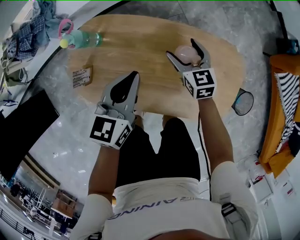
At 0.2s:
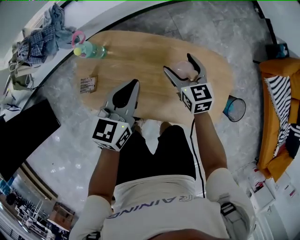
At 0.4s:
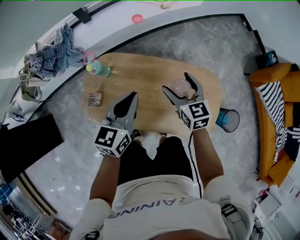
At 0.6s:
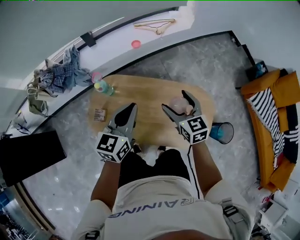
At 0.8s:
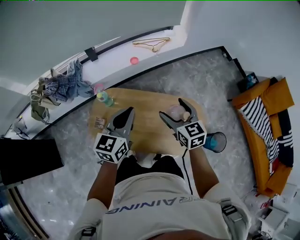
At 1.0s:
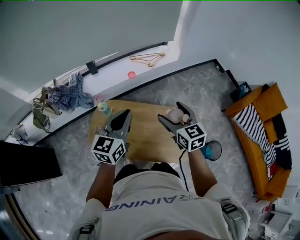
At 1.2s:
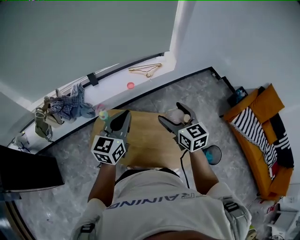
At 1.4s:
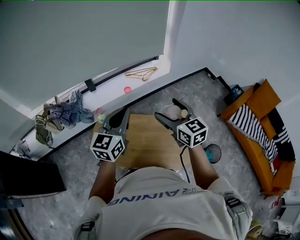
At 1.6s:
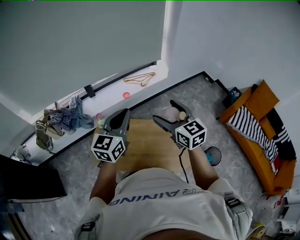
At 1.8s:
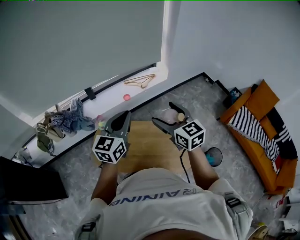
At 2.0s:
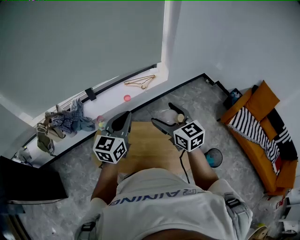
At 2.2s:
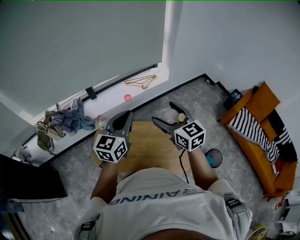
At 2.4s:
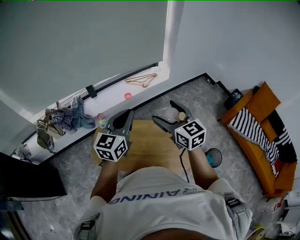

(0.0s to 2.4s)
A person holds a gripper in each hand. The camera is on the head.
0.0s - 1.2s: Both grippers move upward, some 40 cm. The left gripper swivels approximately 20 degrees.
1.2s - 2.4s: The right gripper shifts roughly 5 cm upward.

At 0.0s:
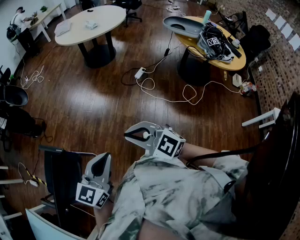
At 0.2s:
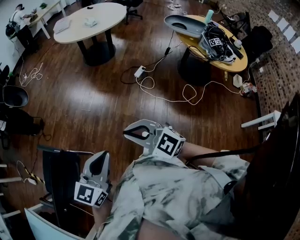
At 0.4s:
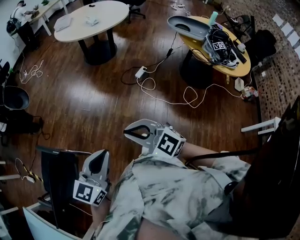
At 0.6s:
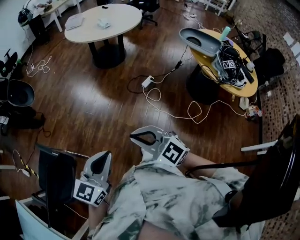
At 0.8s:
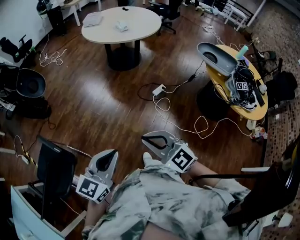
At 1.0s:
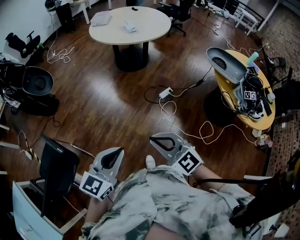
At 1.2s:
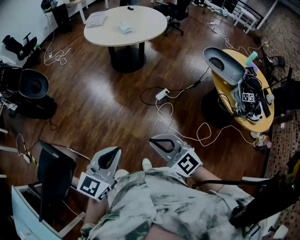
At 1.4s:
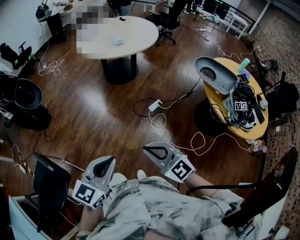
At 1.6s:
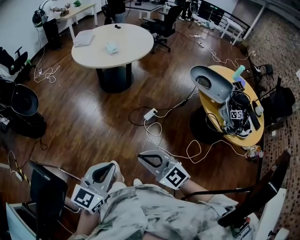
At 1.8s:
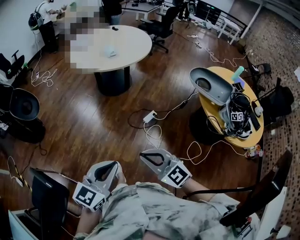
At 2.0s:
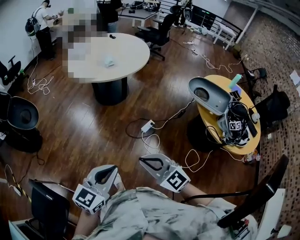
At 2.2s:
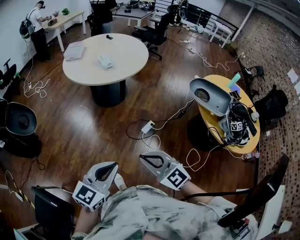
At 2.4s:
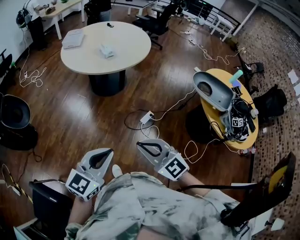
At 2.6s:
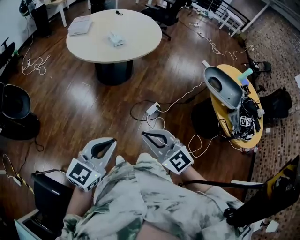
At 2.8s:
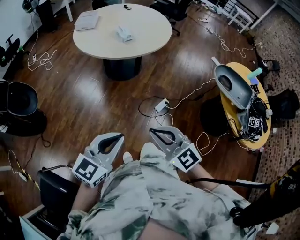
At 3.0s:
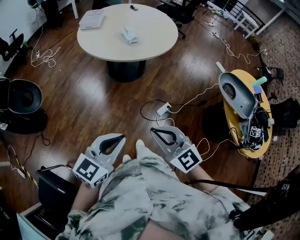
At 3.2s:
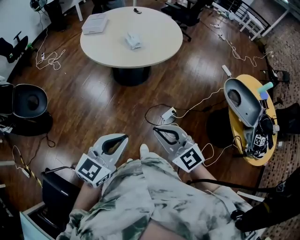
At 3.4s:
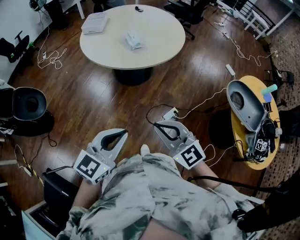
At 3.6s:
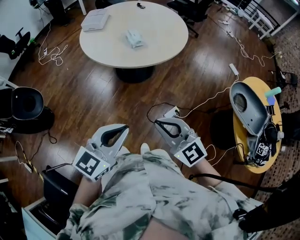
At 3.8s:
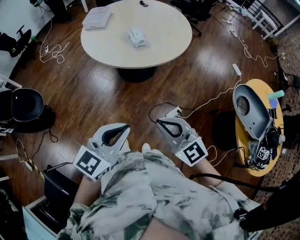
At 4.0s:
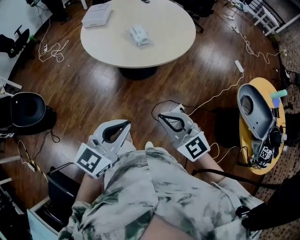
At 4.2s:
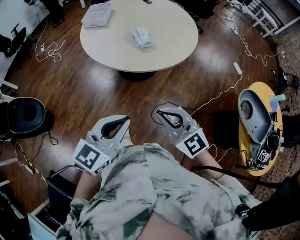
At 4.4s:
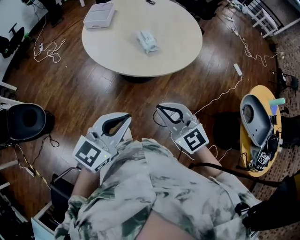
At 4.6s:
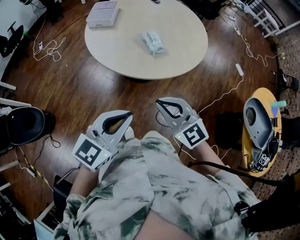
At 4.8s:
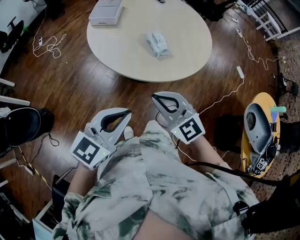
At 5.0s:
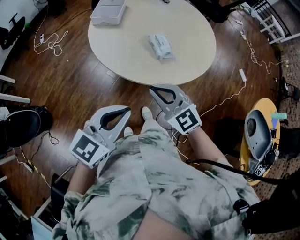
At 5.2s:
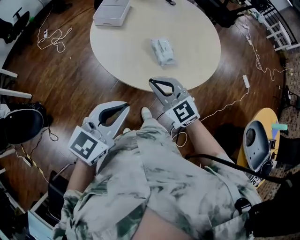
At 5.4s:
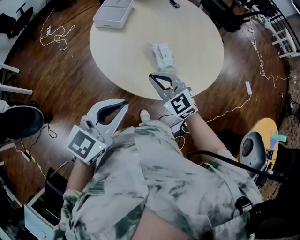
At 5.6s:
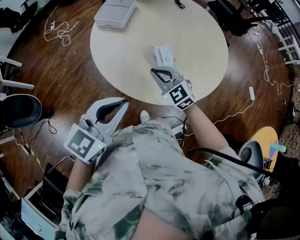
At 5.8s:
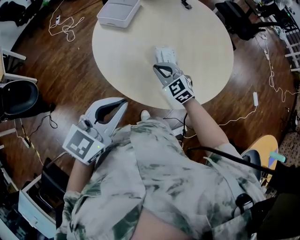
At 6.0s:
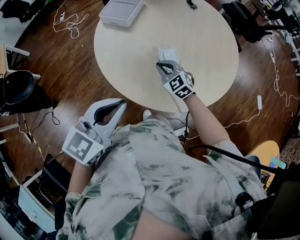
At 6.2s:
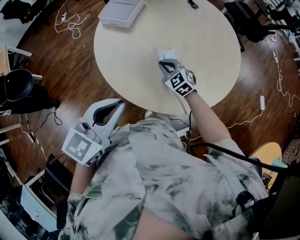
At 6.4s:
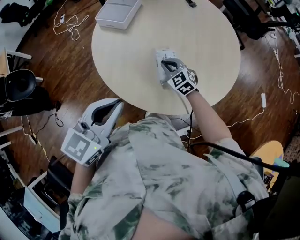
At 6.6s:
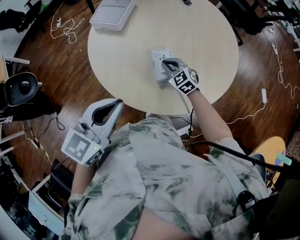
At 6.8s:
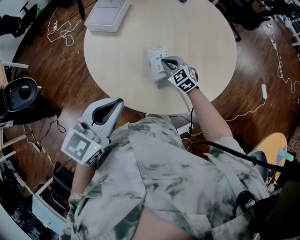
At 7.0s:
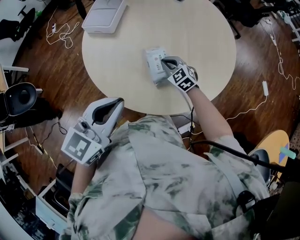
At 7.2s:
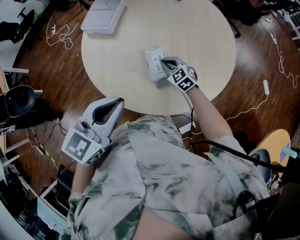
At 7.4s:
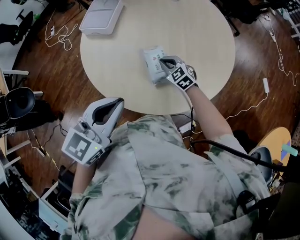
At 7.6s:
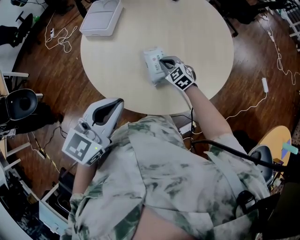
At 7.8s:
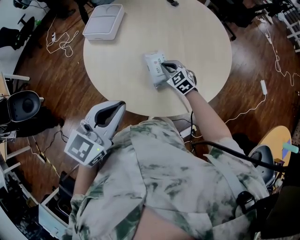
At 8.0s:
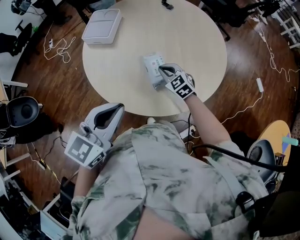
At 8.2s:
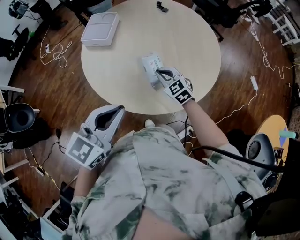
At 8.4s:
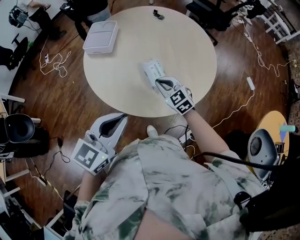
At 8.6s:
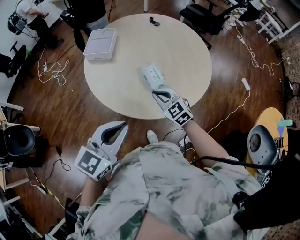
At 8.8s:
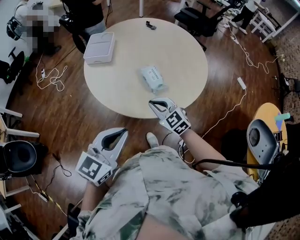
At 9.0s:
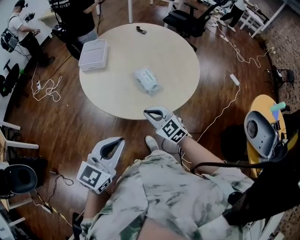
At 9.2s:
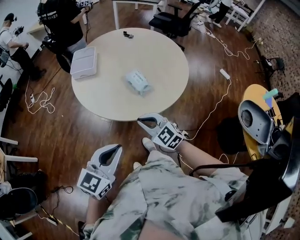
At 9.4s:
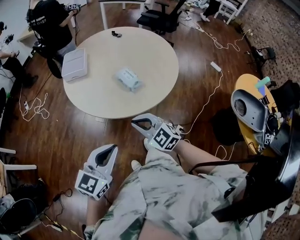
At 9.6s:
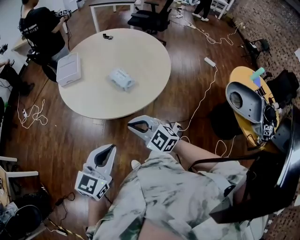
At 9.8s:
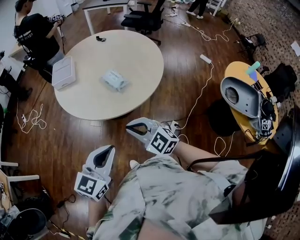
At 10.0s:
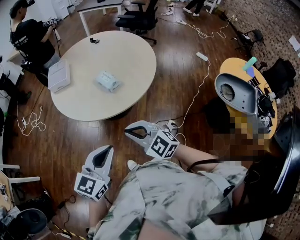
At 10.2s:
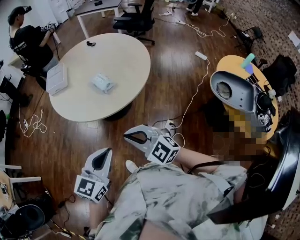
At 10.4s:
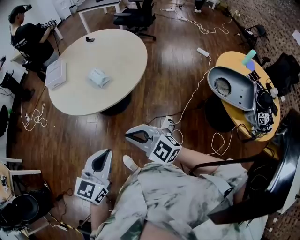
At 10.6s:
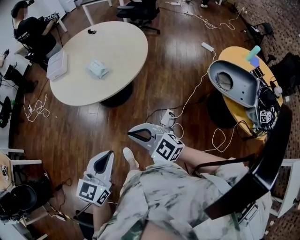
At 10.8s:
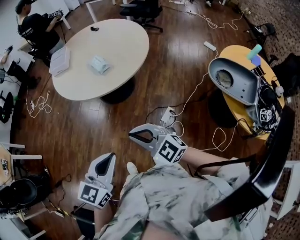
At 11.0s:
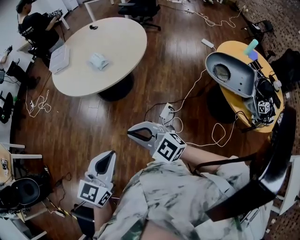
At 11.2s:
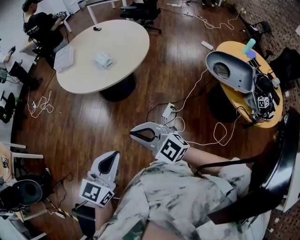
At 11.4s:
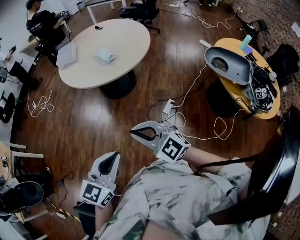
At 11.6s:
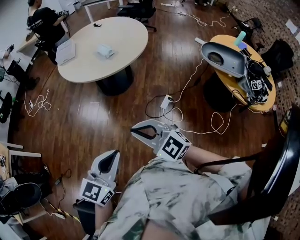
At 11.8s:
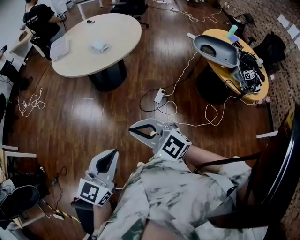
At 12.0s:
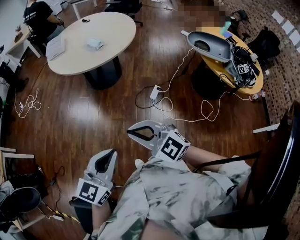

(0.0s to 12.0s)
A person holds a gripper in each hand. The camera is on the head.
0.0s - 1.6s: Both grippers travel together forward and to the right, some 30 cm.
1.6s - 3.0s: Both grippers move forward, some 25 cm.
3.0s - 4.4s: The grippers both shift forward by some 30 cm.
4.4s - 6.0s: The right gripper travels forward and downward by some 50 cm, and swivels roughly 20 degrees. The left gripper moves forward, about 25 cm.
6.0s - 7.6s: The right gripper heads to the right, downward and forward, covering about 10 cm, while the left gripper moves forward, about 5 cm.
7.6s - 9.0s: The right gripper heads backward and upward, covering about 30 cm. The left gripper is displaced backward and to the left by some 20 cm.
9.0s - 10.4s: The grippers both shift backward and to the right by about 25 cm.
10.4s - 12.0s: The grippers both shift backward by roughly 30 cm.

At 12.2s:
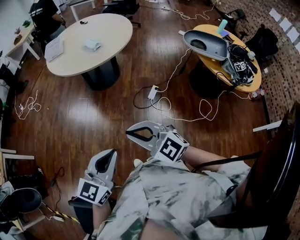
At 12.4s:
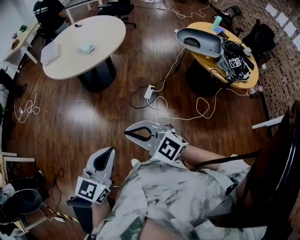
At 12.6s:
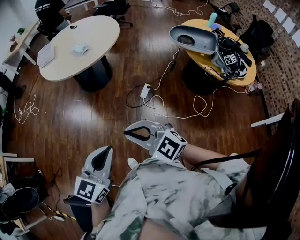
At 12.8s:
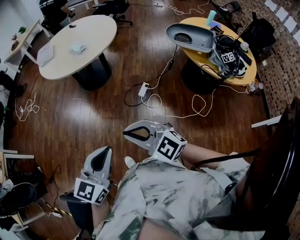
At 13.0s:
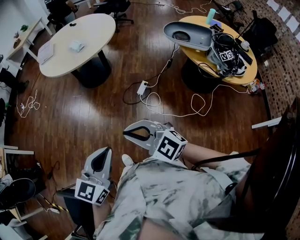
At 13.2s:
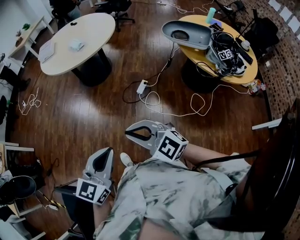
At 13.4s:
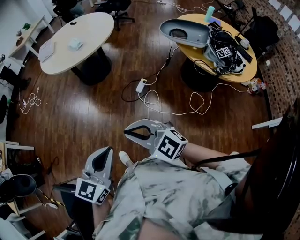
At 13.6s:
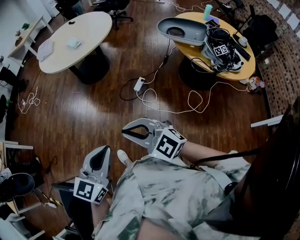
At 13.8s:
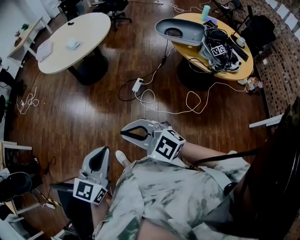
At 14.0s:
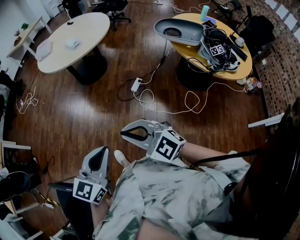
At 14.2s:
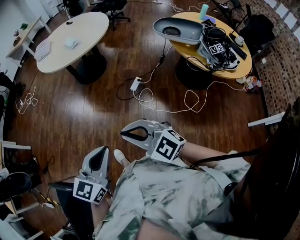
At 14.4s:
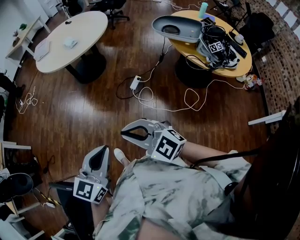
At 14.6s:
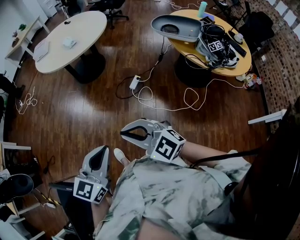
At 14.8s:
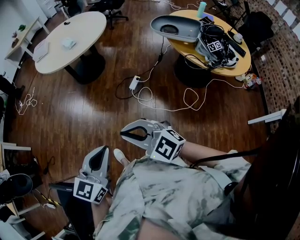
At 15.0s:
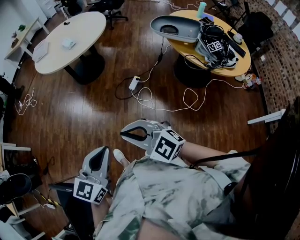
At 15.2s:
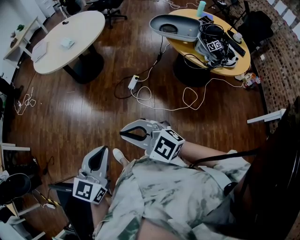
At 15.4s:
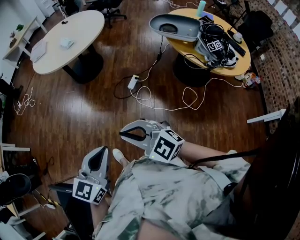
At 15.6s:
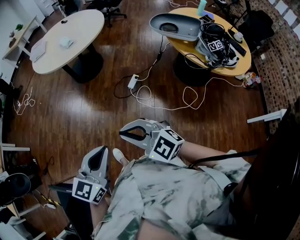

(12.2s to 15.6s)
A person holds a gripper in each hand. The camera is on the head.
12.2s - 13.8s: Both grippers move to the right and backward, about 25 cm.
13.8s - 15.6s: The grippers move only a little.

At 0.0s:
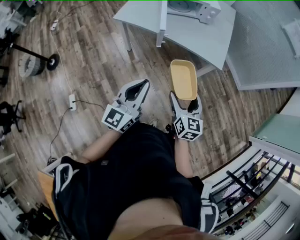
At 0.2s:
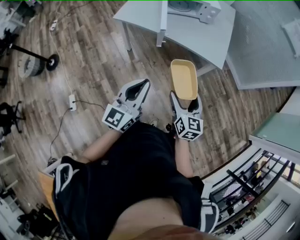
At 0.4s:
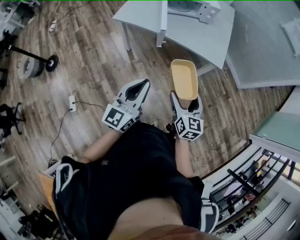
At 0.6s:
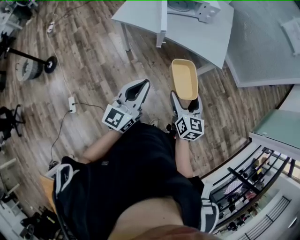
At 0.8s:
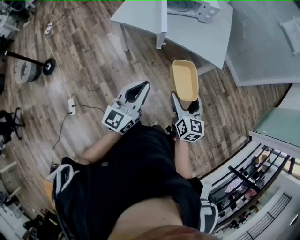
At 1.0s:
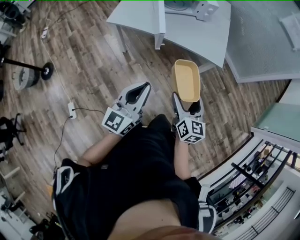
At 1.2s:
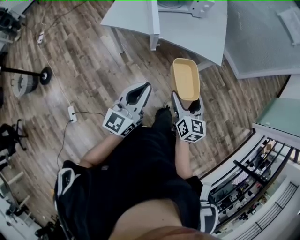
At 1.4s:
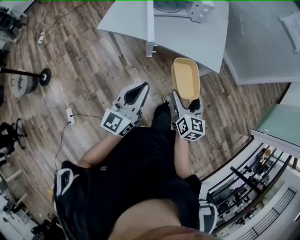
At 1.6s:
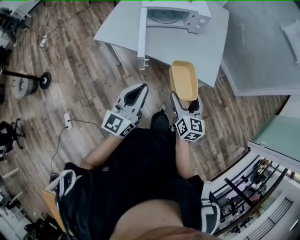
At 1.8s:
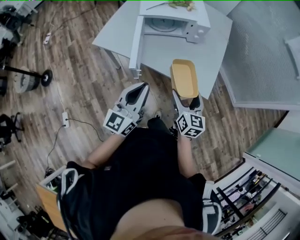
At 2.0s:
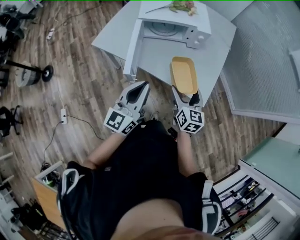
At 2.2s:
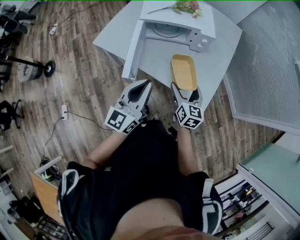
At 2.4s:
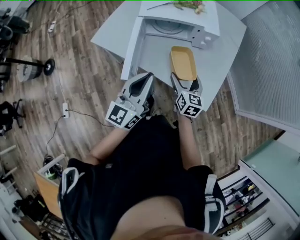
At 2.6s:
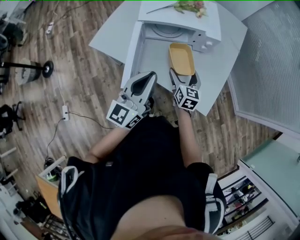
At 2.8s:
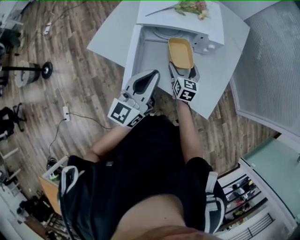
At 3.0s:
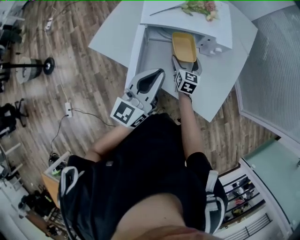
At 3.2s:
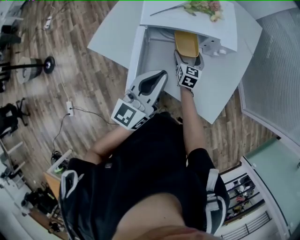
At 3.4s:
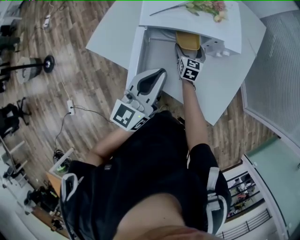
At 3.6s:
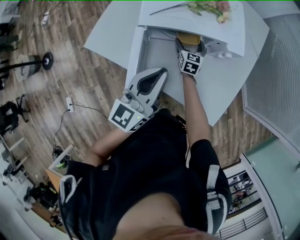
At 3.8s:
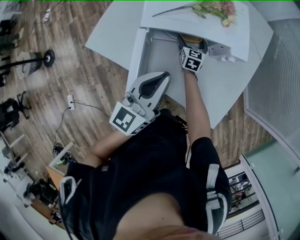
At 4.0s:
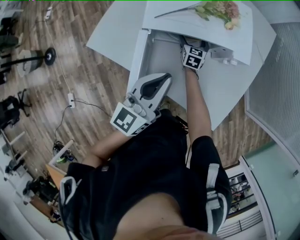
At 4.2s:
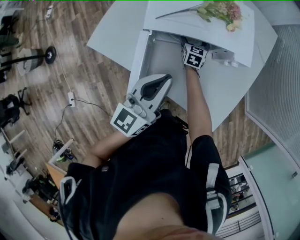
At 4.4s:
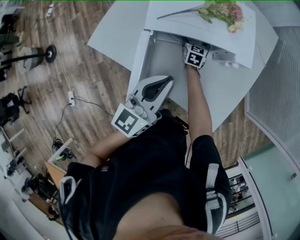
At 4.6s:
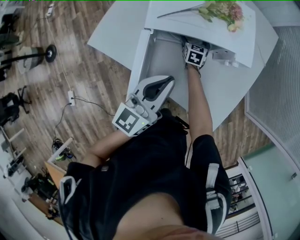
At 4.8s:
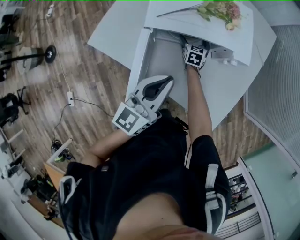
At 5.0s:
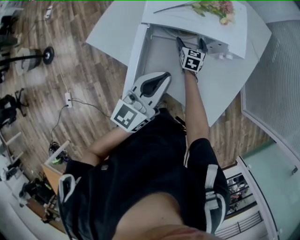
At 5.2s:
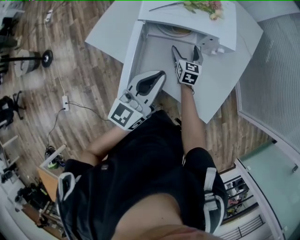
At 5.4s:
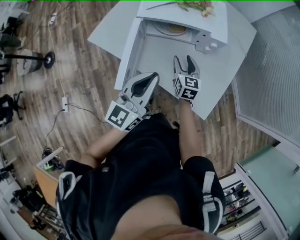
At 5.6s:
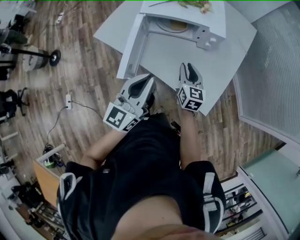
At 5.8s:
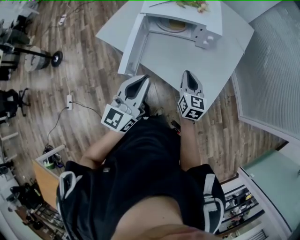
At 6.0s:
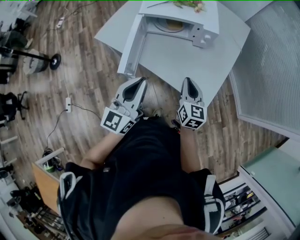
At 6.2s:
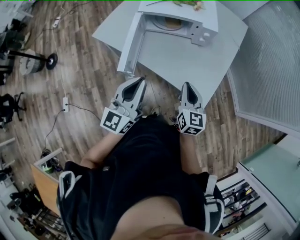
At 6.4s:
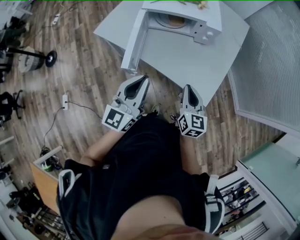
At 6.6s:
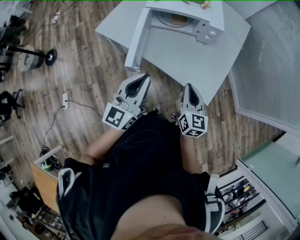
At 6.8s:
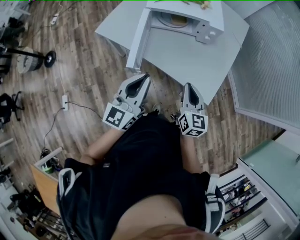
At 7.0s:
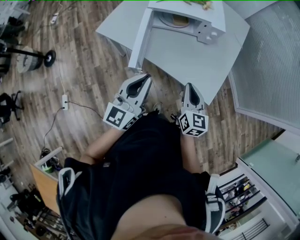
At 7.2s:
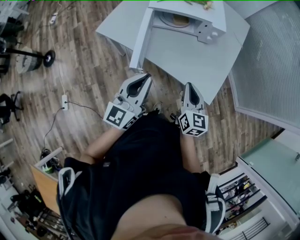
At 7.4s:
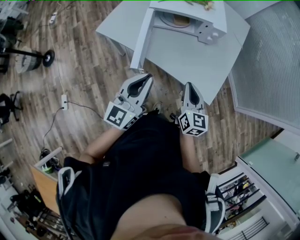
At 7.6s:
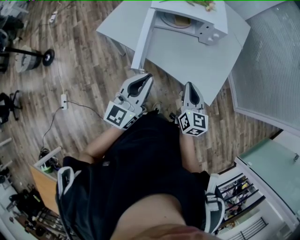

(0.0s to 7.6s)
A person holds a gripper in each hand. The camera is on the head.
0.0s - 1.6s: Both grippers travel together forward, roughly 20 cm.
1.6s - 3.0s: Both grippers travel together forward, some 40 cm.
3.0s - 4.6s: The right gripper heads forward and downward, covering roughly 20 cm, while the left gripper goes roughly 10 cm forward.
4.6s - 6.0s: The right gripper goes some 50 cm backward and upward, swivels approximately 20 degrees, and closes its fingers. The left gripper moves backward, some 25 cm.
6.0s - 7.6s: The right gripper heads to the left and backward, covering roughly 10 cm. The left gripper shifts some 5 cm to the left.
